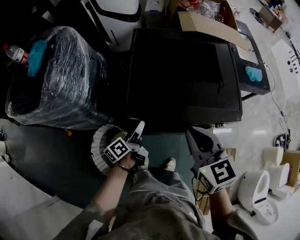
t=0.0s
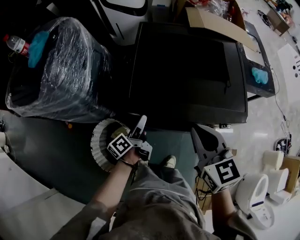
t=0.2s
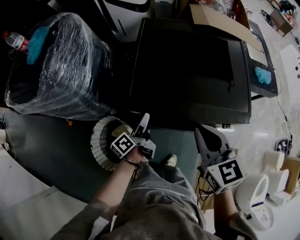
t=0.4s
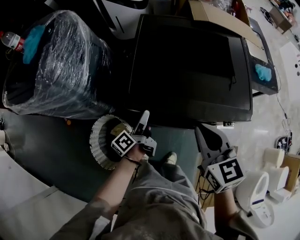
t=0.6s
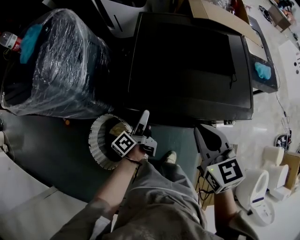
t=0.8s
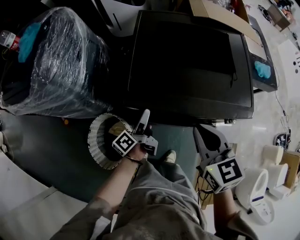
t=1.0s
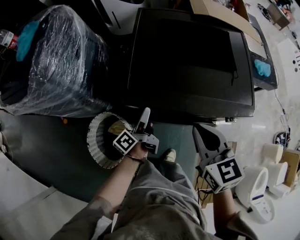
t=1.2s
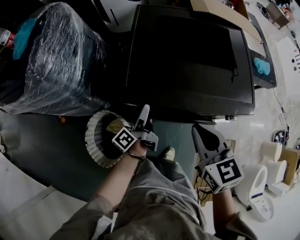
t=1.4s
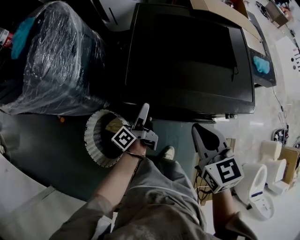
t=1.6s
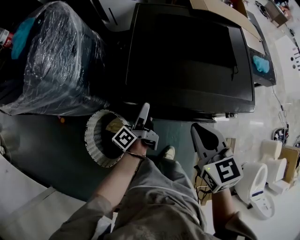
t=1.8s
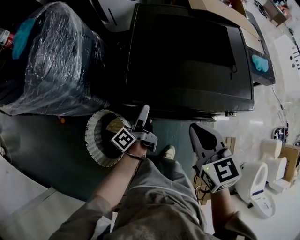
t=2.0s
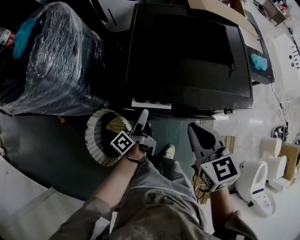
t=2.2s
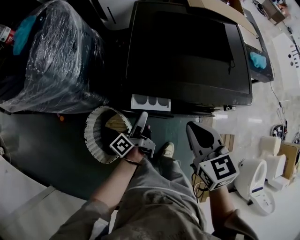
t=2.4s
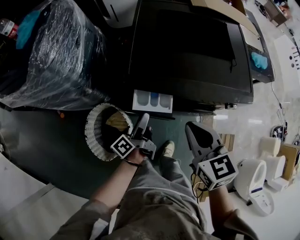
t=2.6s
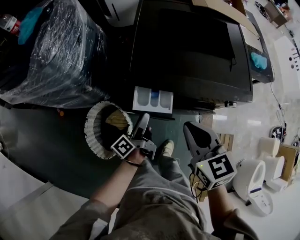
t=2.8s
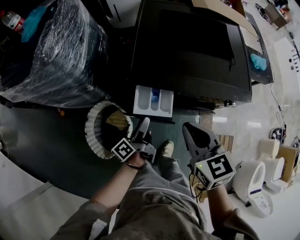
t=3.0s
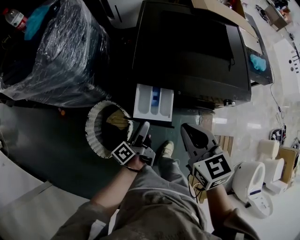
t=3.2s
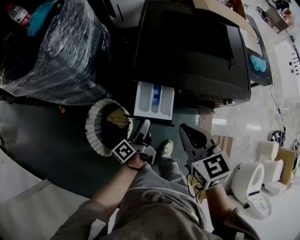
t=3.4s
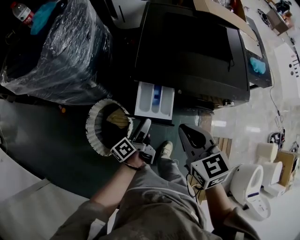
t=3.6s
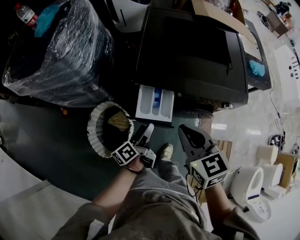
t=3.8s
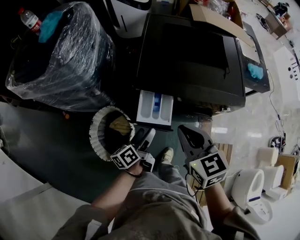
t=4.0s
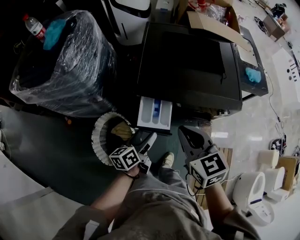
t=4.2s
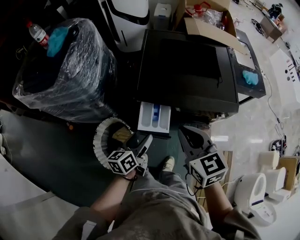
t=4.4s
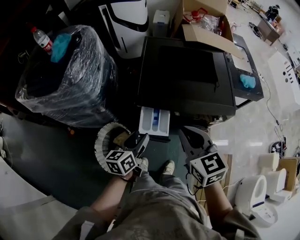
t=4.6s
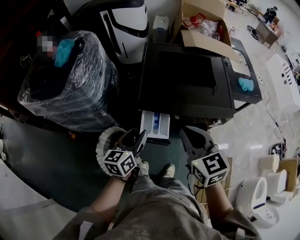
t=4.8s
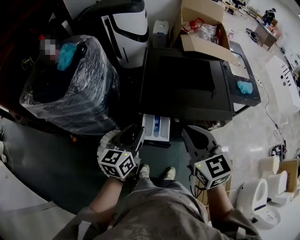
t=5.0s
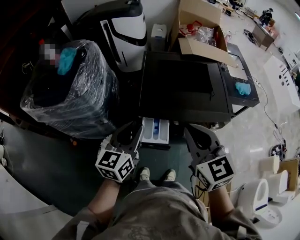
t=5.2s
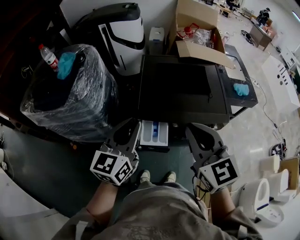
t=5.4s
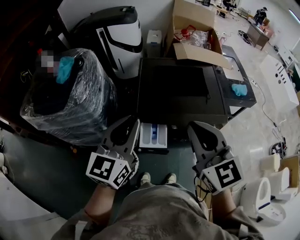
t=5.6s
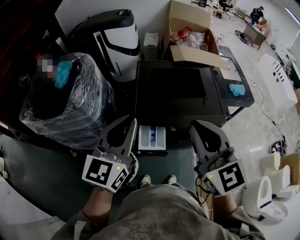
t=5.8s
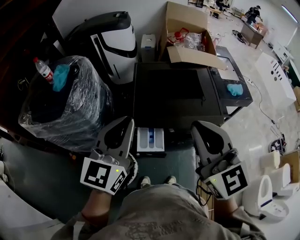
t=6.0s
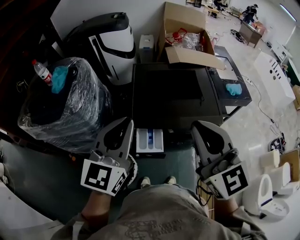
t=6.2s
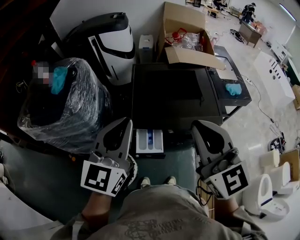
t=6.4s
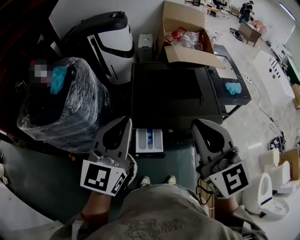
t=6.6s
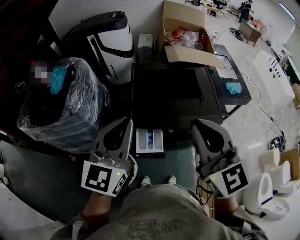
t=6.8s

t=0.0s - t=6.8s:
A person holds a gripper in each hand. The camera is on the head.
t=0.0s - t=1.4s: The right gripper travels downward by about 5 cm; the left gripper rotates some 20 degrees.
t=1.4s - t=2.8s: The right gripper shifts by approximately 5 cm; the left gripper heads backward, covering some 10 cm.
t=2.8s - t=4.0s: The left gripper travels backward by approximately 5 cm, and swivels roughly 20 degrees.
t=4.0s - t=5.4s: The left gripper heads upward, covering about 30 cm, rotates around the line of its fingers by some 60 degrees, clockwise from behind, and closes, while the right gripper goes about 20 cm upward, and changes its angle by about 20 degrees.
t=5.4s - t=6.8s: Both grippers move upward, about 10 cm.

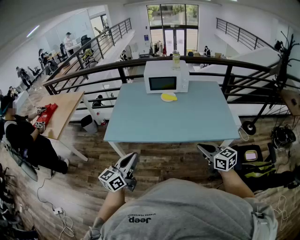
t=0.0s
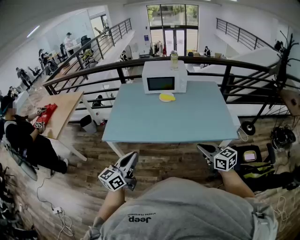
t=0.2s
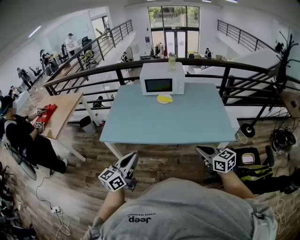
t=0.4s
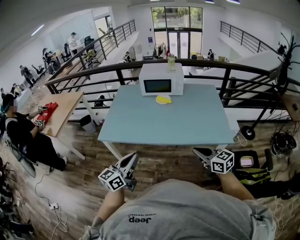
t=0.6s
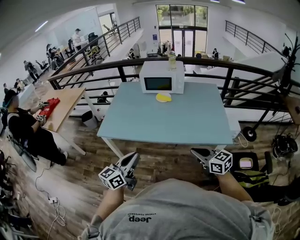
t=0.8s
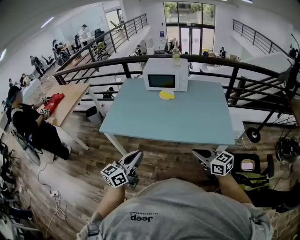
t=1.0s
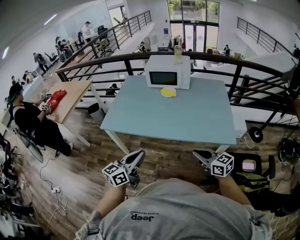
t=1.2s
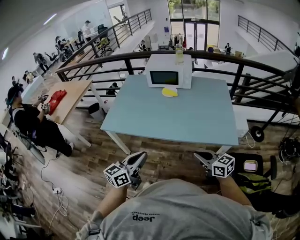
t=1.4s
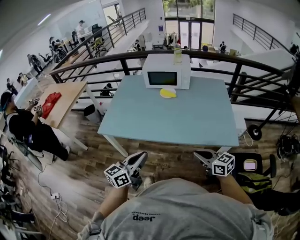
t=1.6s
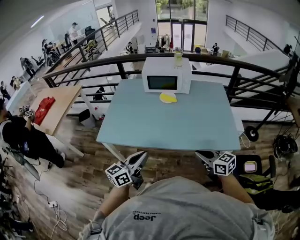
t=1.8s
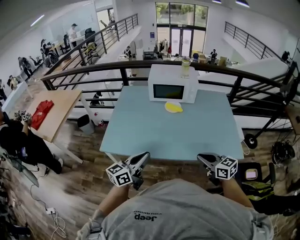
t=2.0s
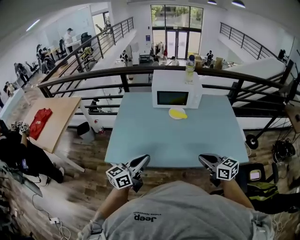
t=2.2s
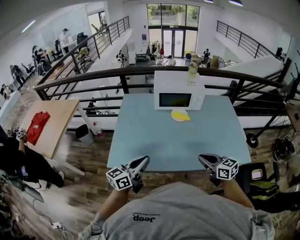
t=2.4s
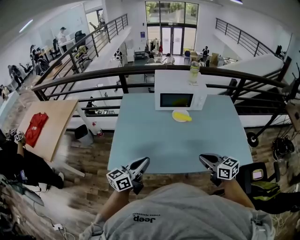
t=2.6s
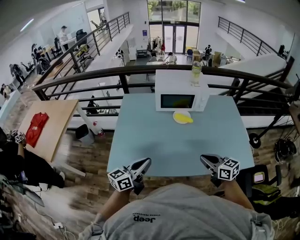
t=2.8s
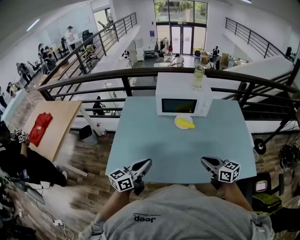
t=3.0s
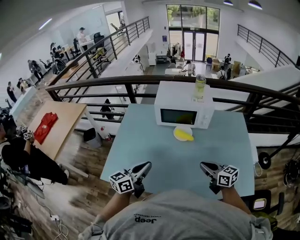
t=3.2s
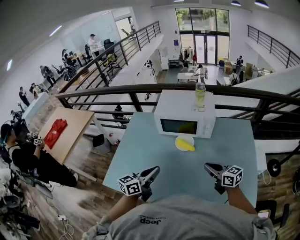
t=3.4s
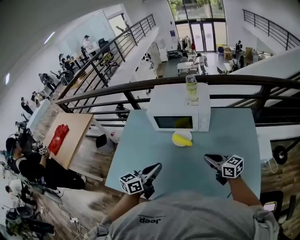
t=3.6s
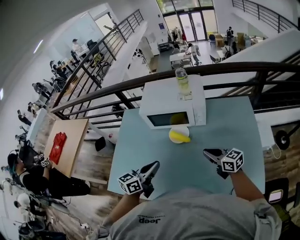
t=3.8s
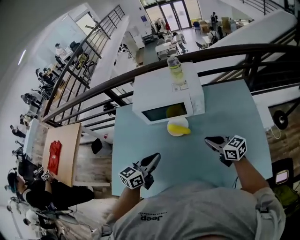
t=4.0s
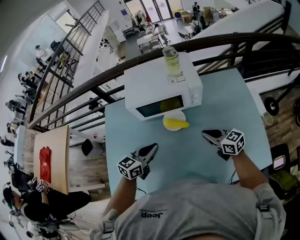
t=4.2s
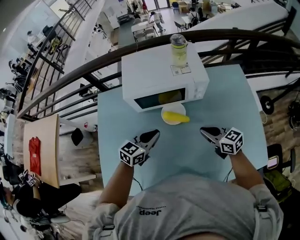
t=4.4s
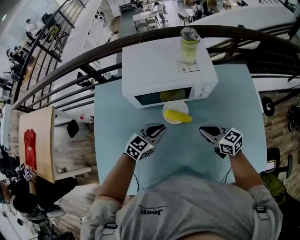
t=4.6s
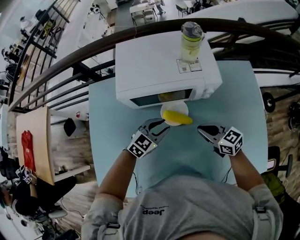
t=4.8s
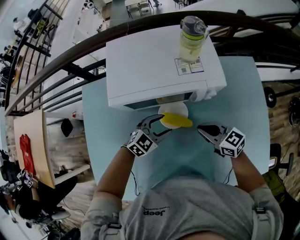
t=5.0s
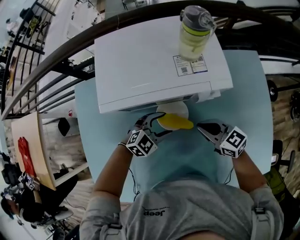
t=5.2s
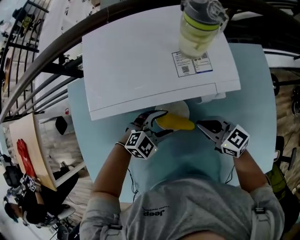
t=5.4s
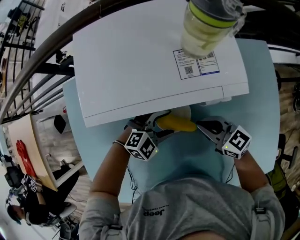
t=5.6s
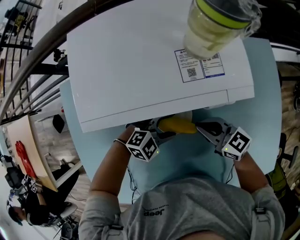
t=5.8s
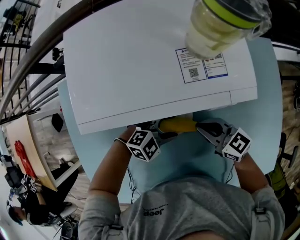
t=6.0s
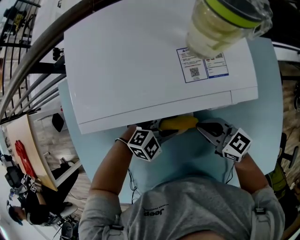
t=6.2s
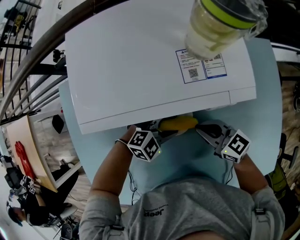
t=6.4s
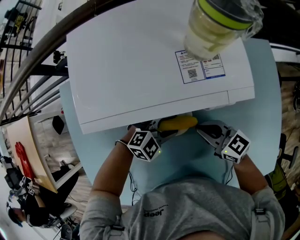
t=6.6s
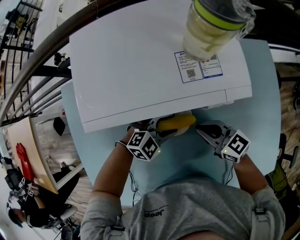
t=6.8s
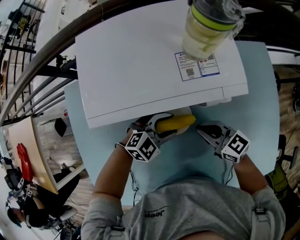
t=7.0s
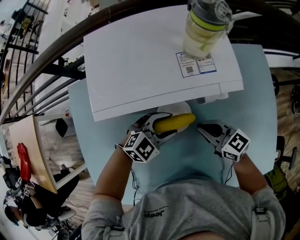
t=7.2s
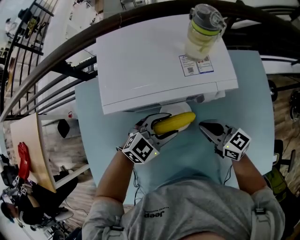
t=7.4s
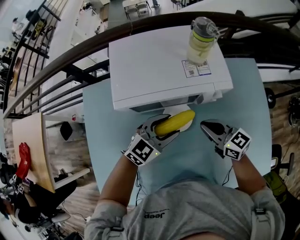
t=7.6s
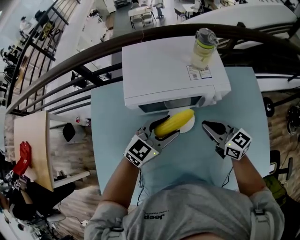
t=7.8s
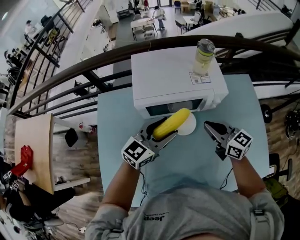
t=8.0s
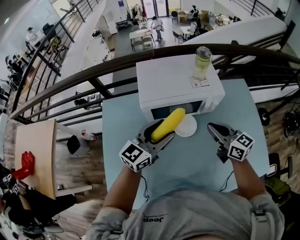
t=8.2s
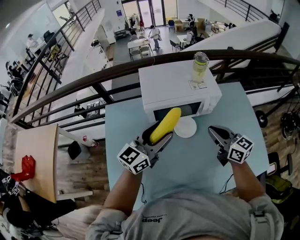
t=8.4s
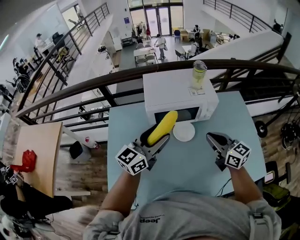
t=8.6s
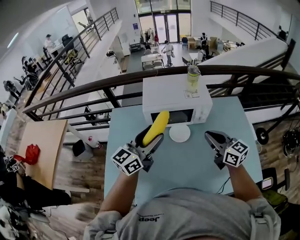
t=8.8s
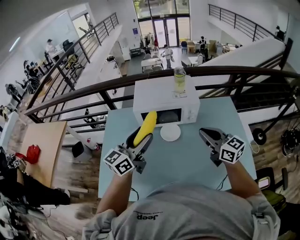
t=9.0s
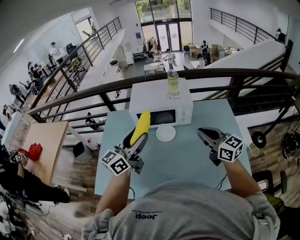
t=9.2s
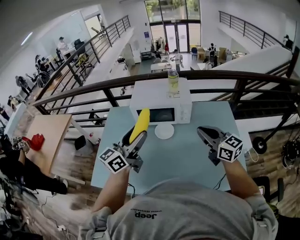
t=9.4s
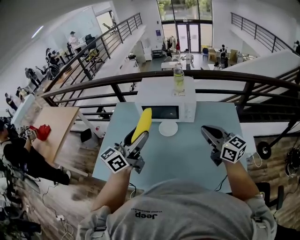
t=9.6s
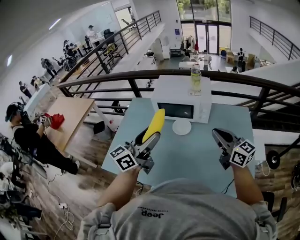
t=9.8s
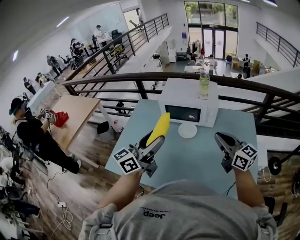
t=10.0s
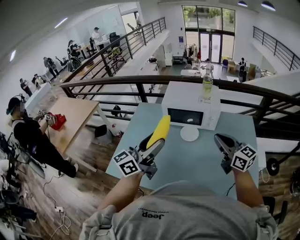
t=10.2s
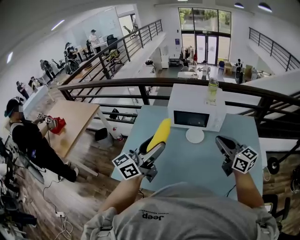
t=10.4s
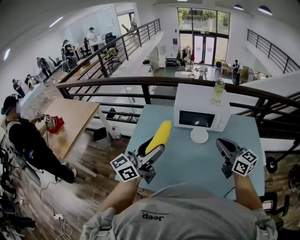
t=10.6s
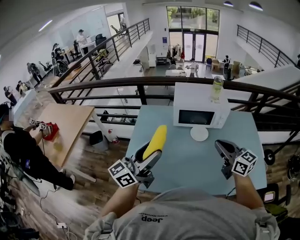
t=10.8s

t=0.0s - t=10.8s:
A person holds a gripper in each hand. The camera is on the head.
t=0.0s - t=1.6s: The right gripper travels to the right and downward by approximately 10 cm; the left gripper moves to the right, approximately 15 cm.
t=1.6s - t=3.0s: Both grippers travel together forward and to the left, approximately 30 cm.
t=3.0s - t=4.6s: The right gripper travels forward and downward by approximately 30 cm, while the left gripper heads forward, to the right and downward, covering roughly 40 cm, and rotates roughly 40 degrees.
t=4.6s - t=6.2s: The right gripper heads downward, covering some 10 cm, while the left gripper shifts roughly 15 cm downward, turns by about 40 degrees, and opens up.
t=6.2s - t=7.8s: Both grippers travel together upward, about 20 cm. The left gripper rotates approximately 40 degrees.
t=7.8s - t=9.2s: The right gripper shifts some 25 cm upward, backward and to the right, while the left gripper travels upward and backward by roughly 30 cm, and rotates roughly 40 degrees.
t=9.2s - t=10.8s: The right gripper goes roughly 15 cm to the left. The left gripper goes about 20 cm to the left and backward.

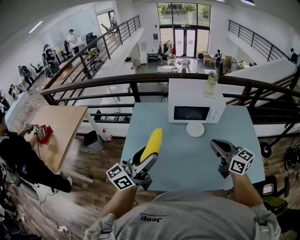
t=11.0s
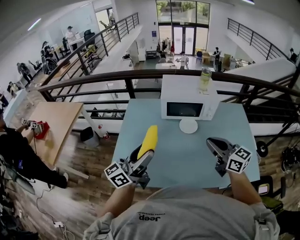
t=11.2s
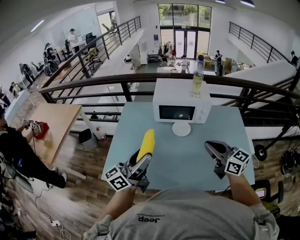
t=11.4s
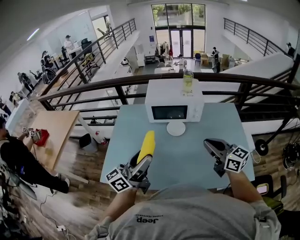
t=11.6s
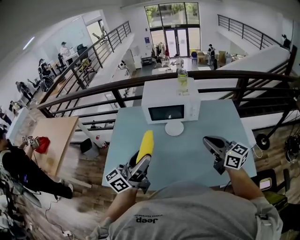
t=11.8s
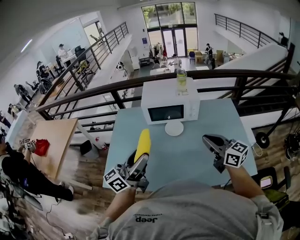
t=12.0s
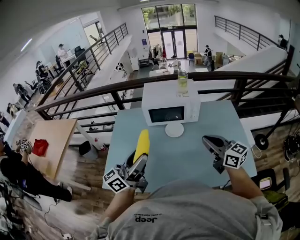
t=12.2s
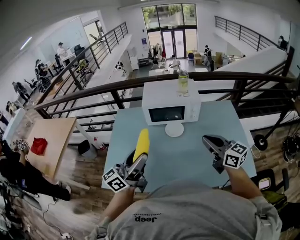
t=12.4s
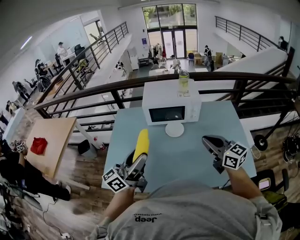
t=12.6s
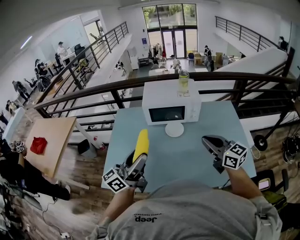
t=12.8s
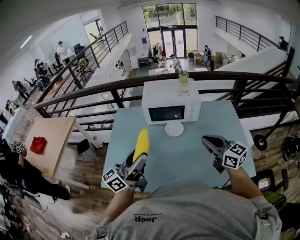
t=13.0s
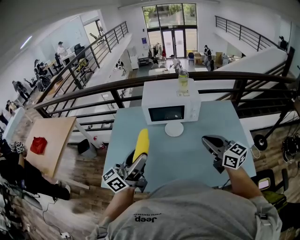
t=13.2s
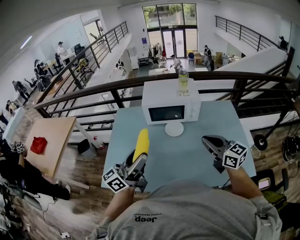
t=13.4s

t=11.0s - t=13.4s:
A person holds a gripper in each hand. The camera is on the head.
t=11.0s - t=12.2s: The two grippers go roughly 15 cm to the right.
t=12.2s - t=13.4s: The grippers make only small movements.

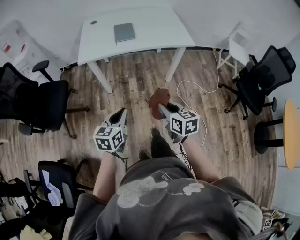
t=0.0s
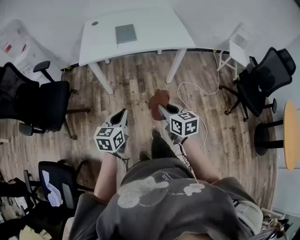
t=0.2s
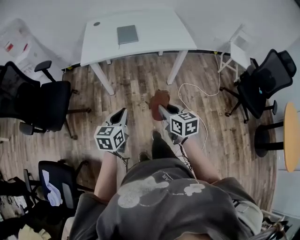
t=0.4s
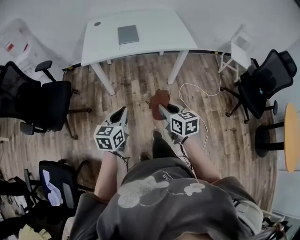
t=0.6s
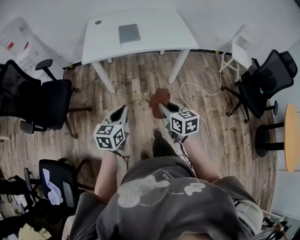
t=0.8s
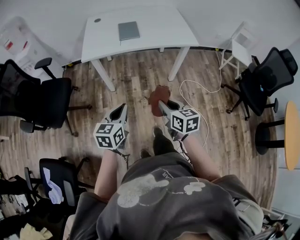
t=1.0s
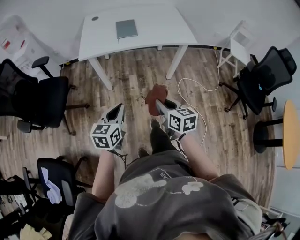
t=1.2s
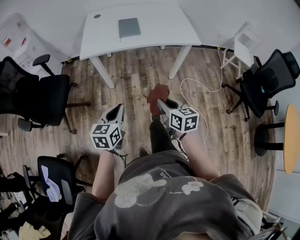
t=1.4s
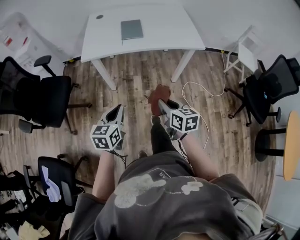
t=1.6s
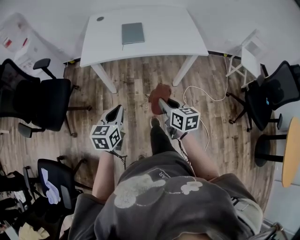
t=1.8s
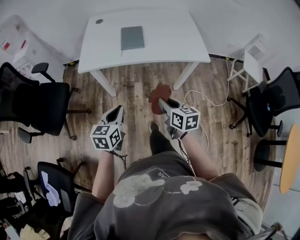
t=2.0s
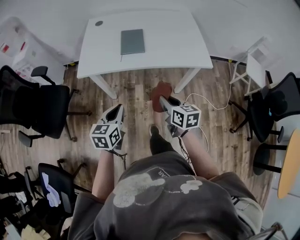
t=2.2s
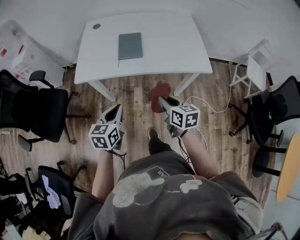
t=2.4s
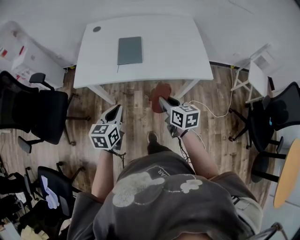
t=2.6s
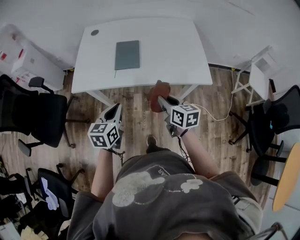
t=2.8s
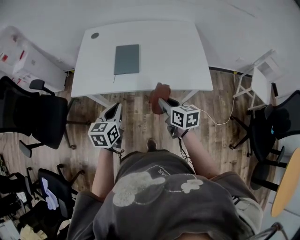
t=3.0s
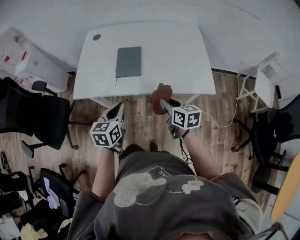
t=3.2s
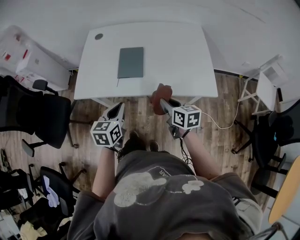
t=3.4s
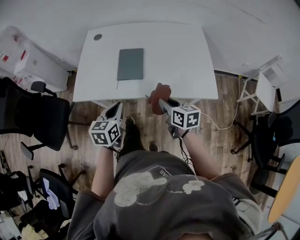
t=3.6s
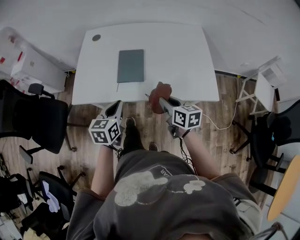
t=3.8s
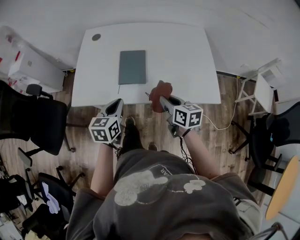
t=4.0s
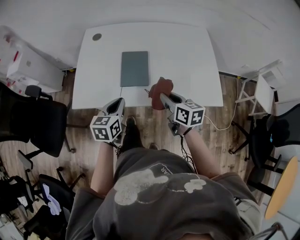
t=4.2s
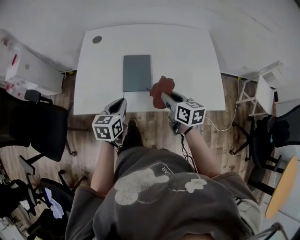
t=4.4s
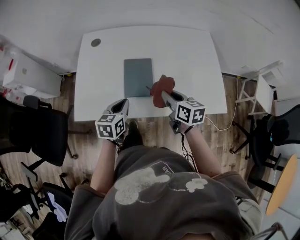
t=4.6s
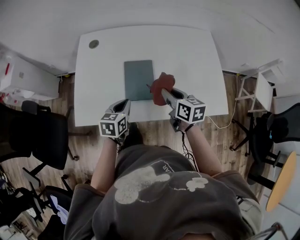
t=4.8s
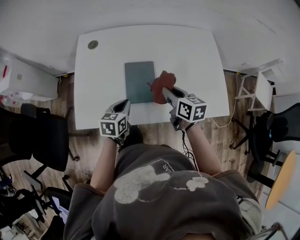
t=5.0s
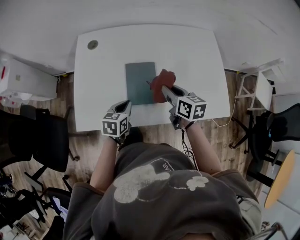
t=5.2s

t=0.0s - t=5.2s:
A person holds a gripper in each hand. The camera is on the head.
t=0.0s - t=1.8s: Both grippers travel together forward, some 15 cm.
t=1.8s - t=3.4s: The left gripper heads forward and to the right, covering approximately 35 cm. The right gripper goes some 30 cm forward.
t=3.4s - t=5.2s: The right gripper travels forward by some 25 cm; the left gripper shifts about 25 cm forward and downward.
